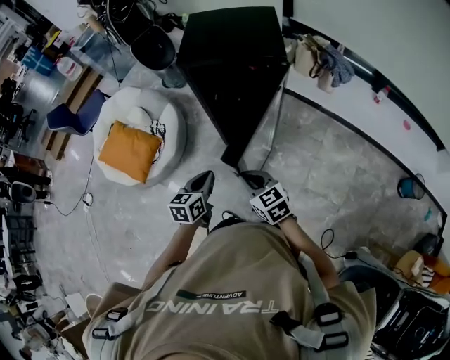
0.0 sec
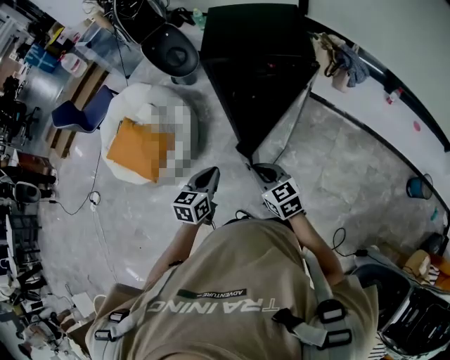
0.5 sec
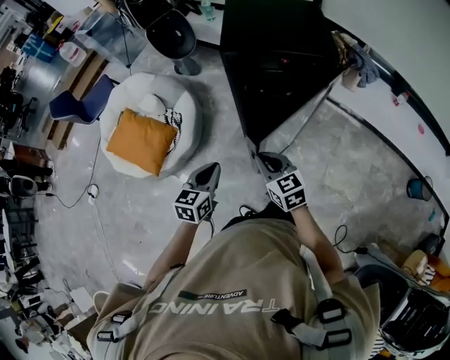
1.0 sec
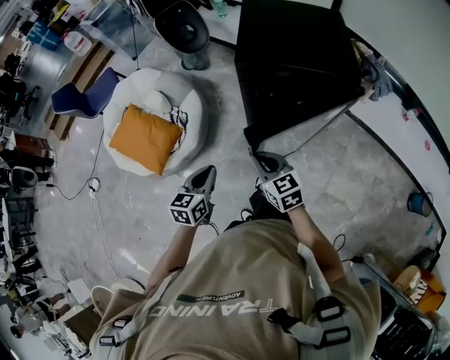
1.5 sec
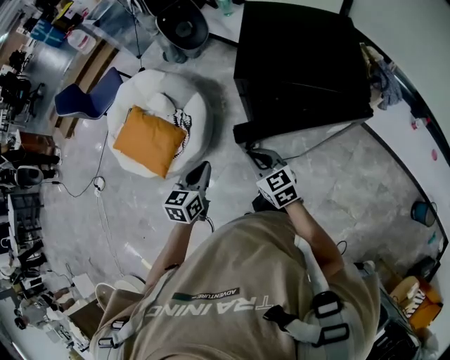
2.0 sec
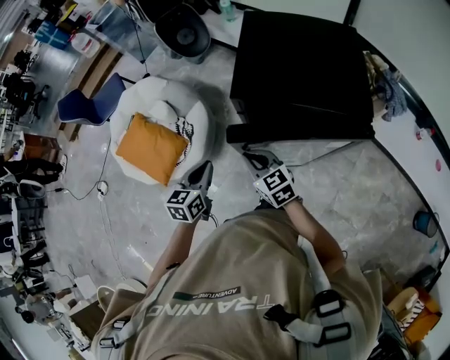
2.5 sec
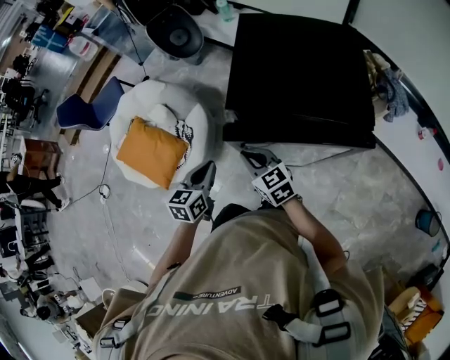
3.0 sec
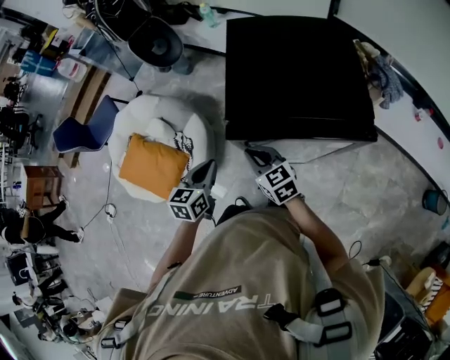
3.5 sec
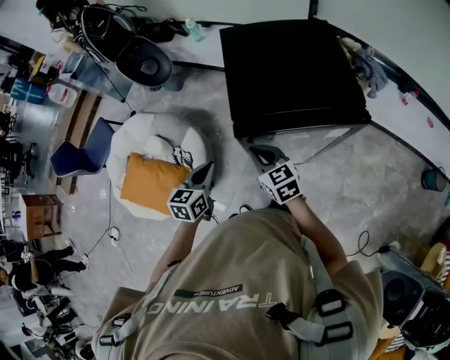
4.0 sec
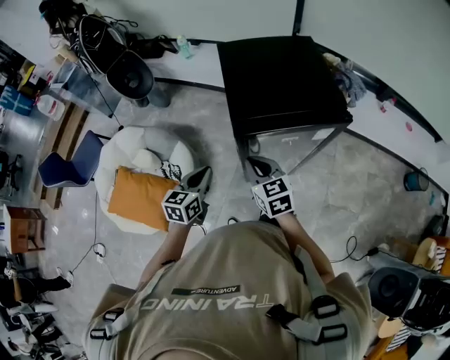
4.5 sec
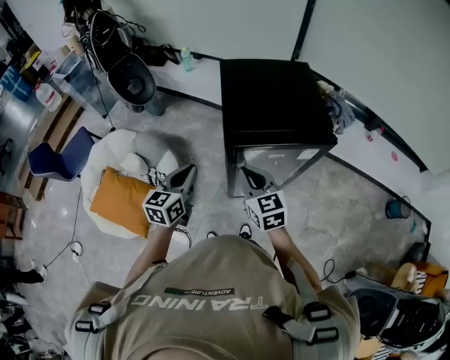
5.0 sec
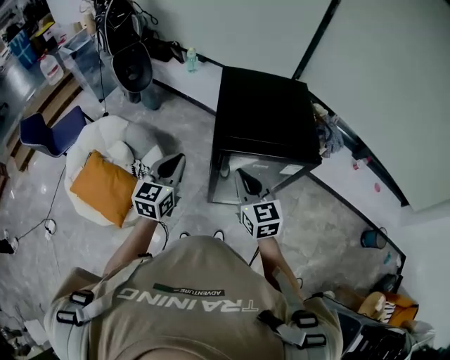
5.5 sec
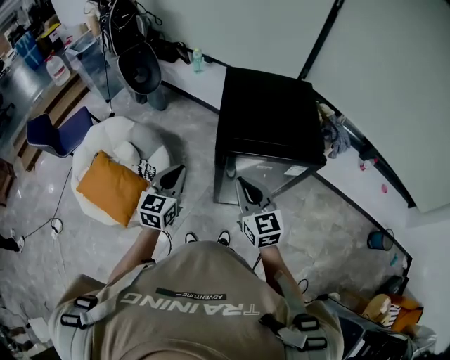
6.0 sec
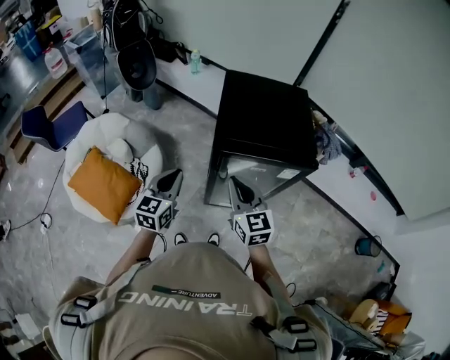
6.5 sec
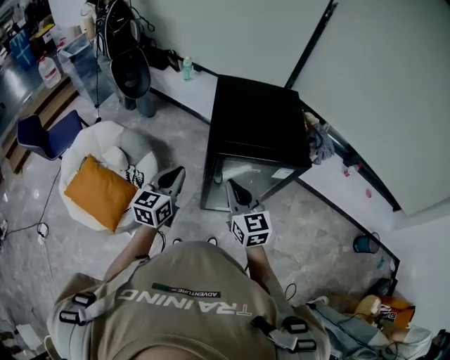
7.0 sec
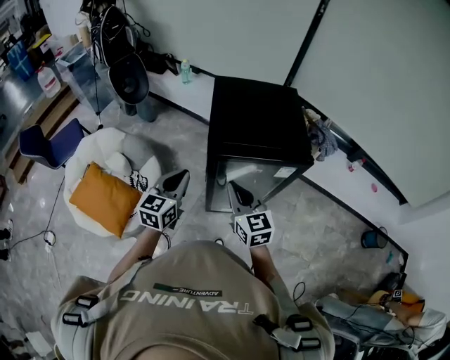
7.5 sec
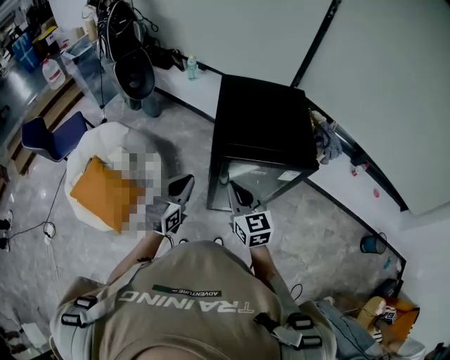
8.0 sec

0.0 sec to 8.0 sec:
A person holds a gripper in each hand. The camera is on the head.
0.0 sec to 2.0 sec: The grippers both shift forward and to the left by roughly 25 cm.
2.0 sec to 4.0 sec: The grippers both shift forward by some 10 cm.
4.0 sec to 6.0 sec: The left gripper shifts approximately 10 cm upward. Meanwhile the right gripper goes roughly 15 cm upward, backward and to the right.
6.0 sec to 8.0 sec: The grippers stay close to where they were, moving slightly.

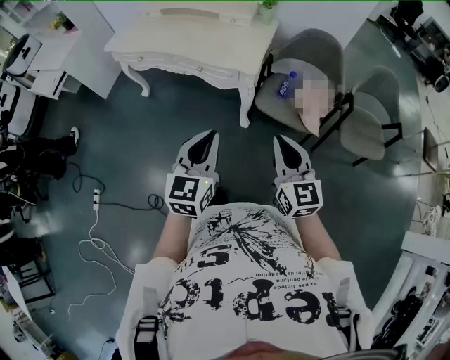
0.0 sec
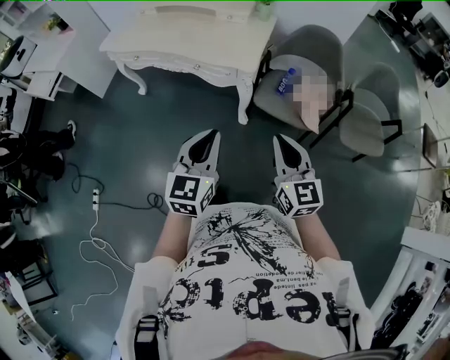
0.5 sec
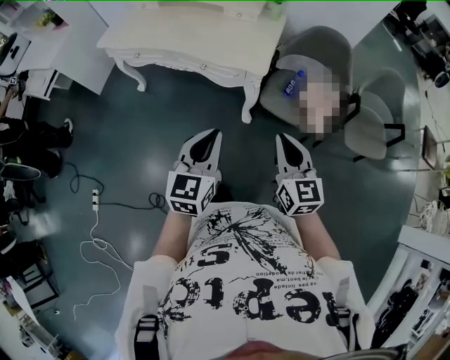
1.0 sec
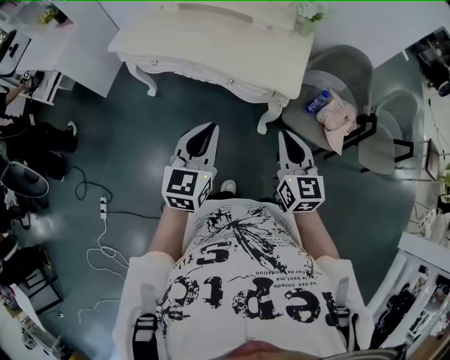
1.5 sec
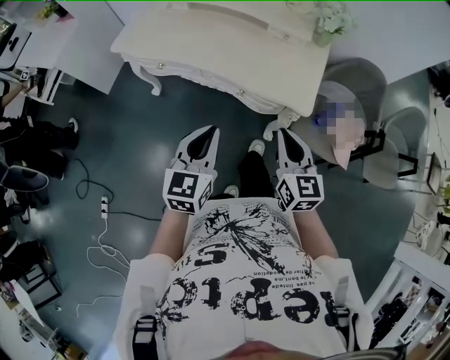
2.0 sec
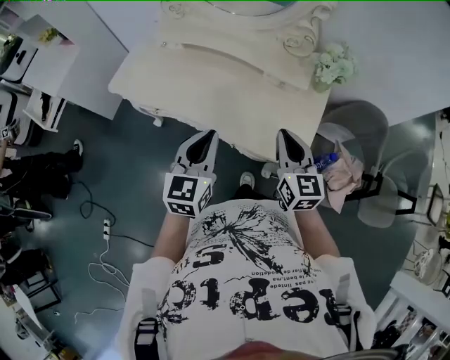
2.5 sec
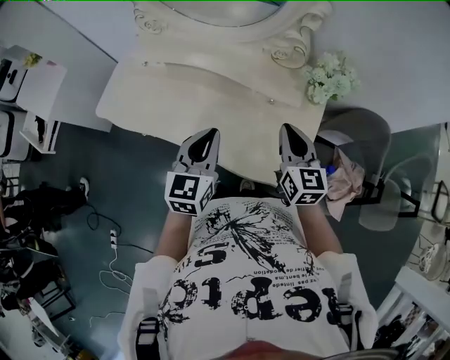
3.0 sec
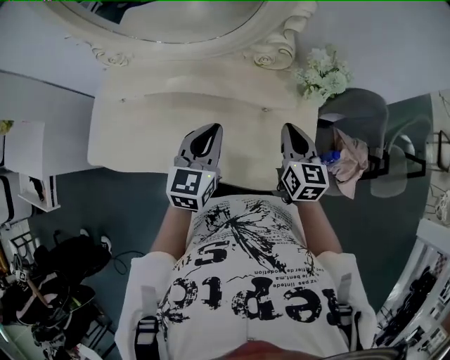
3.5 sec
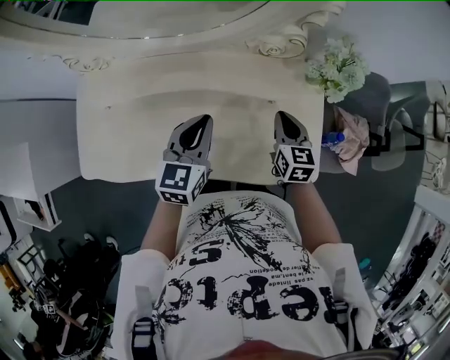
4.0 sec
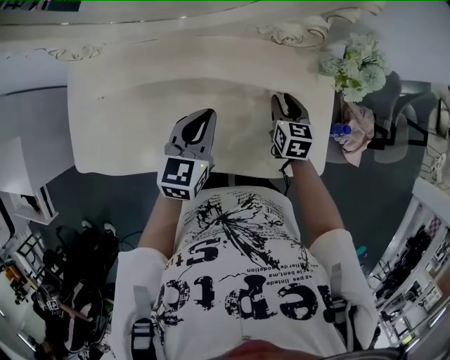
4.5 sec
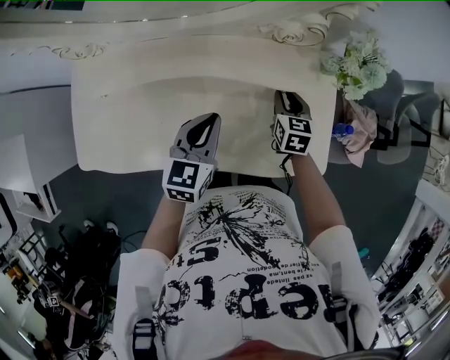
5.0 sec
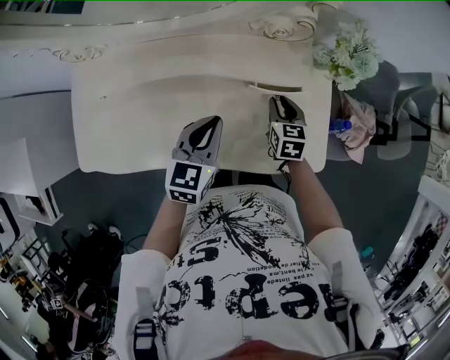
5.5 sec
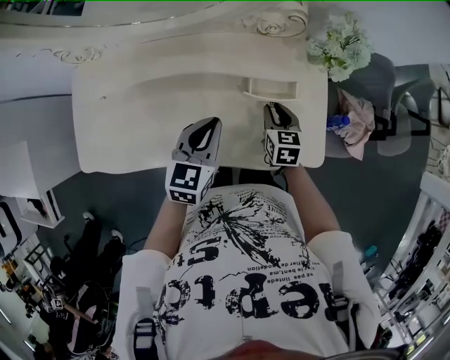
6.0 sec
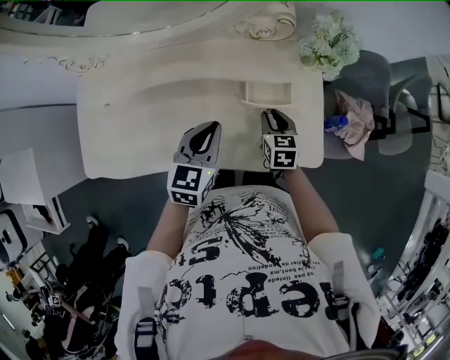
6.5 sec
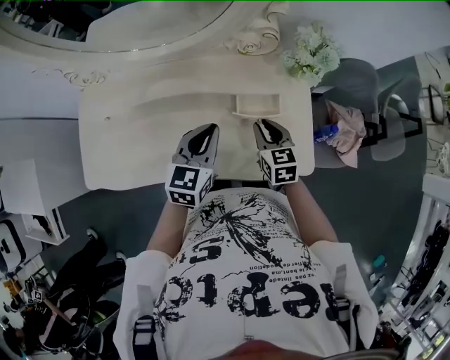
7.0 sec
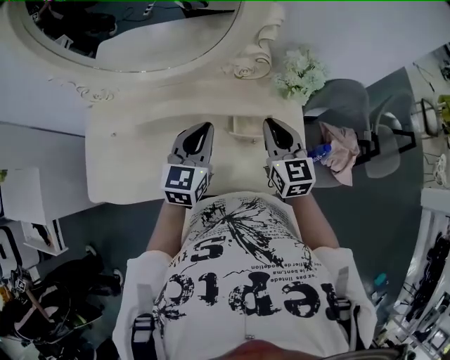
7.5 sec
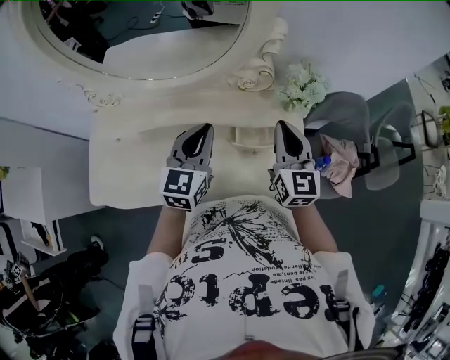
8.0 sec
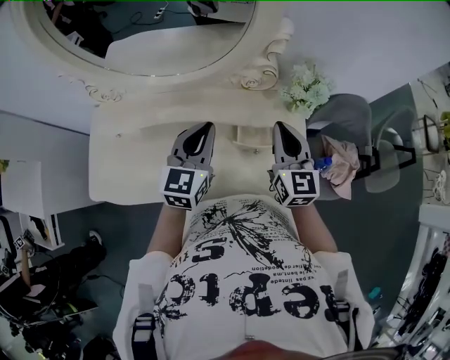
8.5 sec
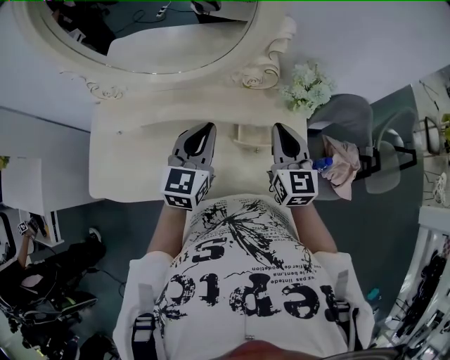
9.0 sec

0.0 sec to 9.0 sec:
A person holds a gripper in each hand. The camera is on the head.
0.0 sec to 2.0 sec: The two grippers go approximately 35 cm forward and to the left.
2.0 sec to 4.5 sec: The pair of grippers is taken approximately 50 cm. The right gripper rotates about 40 degrees, and opens up. The left gripper rotates approximately 30 degrees.
4.5 sec to 7.0 sec: The right gripper goes about 10 cm backward and upward. Meanwhile the left gripper moves to the right, roughly 5 cm.
7.0 sec to 9.0 sec: The right gripper goes roughly 15 cm upward, and swivels roughly 30 degrees. The left gripper shifts about 10 cm upward.

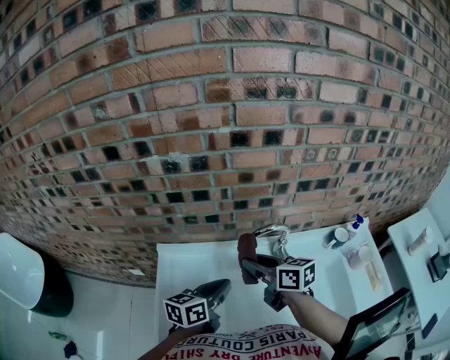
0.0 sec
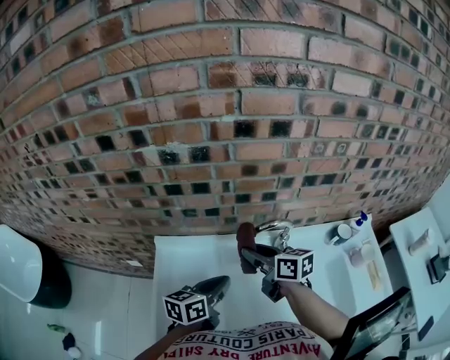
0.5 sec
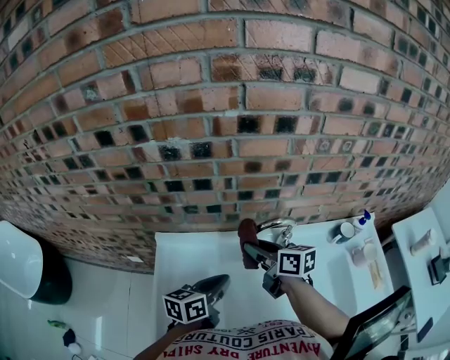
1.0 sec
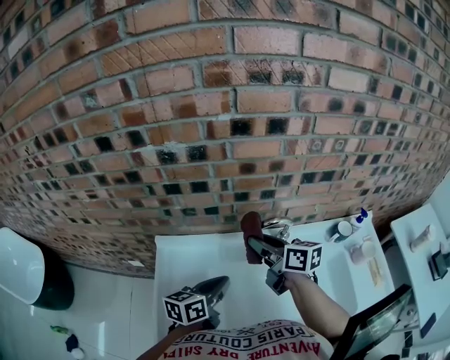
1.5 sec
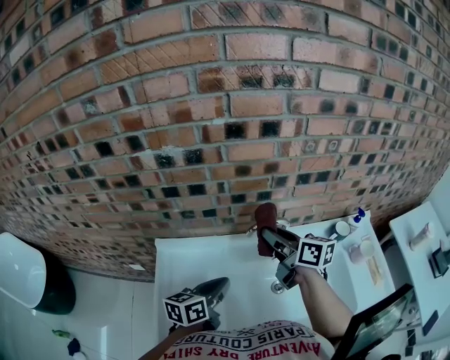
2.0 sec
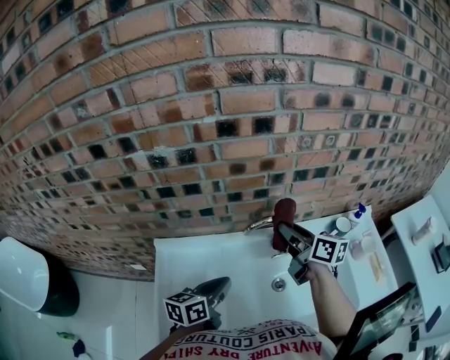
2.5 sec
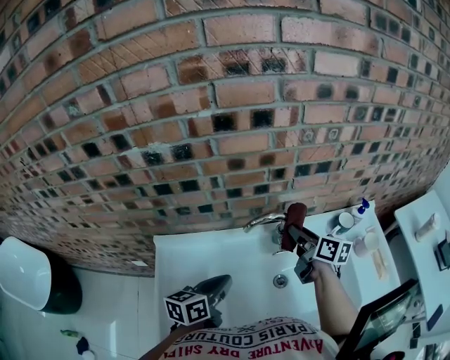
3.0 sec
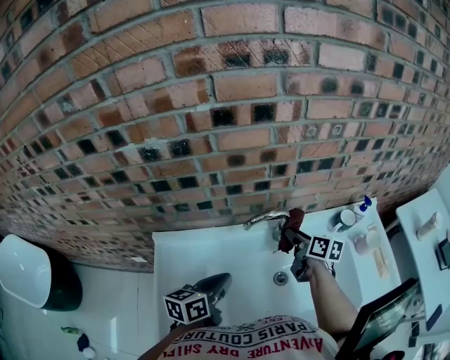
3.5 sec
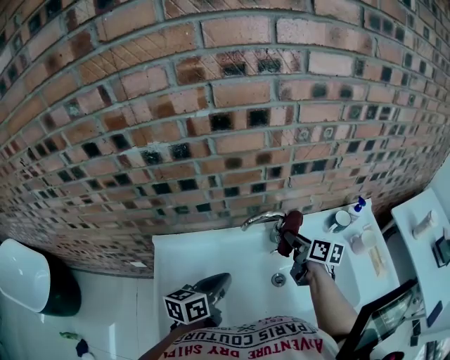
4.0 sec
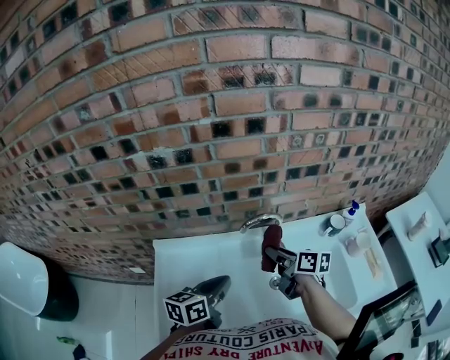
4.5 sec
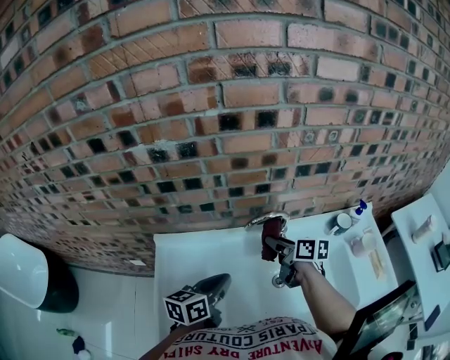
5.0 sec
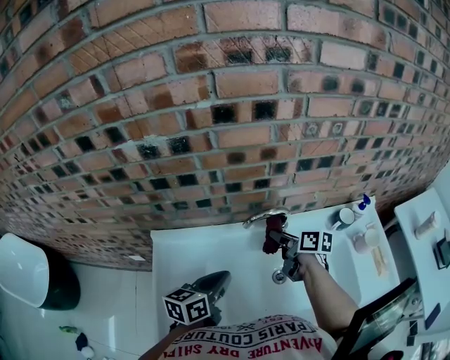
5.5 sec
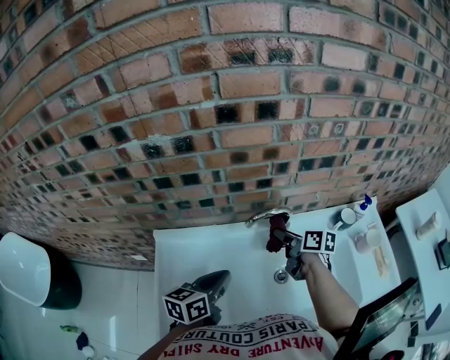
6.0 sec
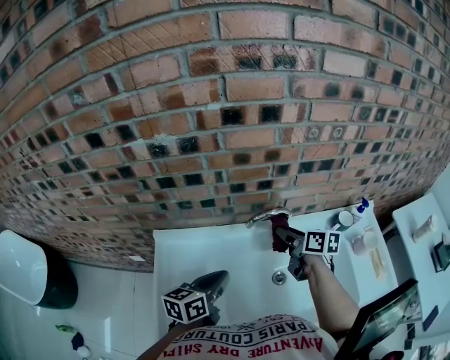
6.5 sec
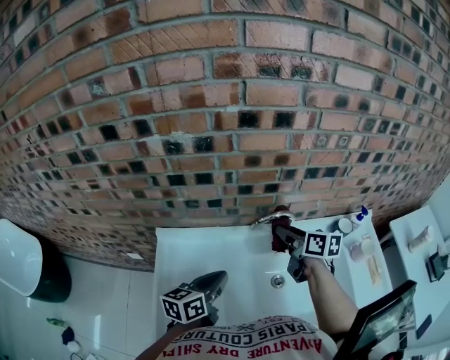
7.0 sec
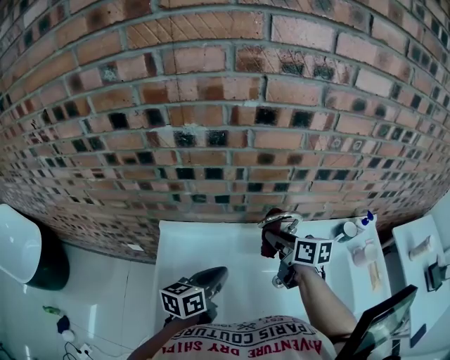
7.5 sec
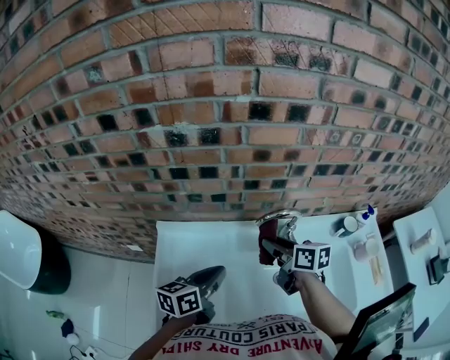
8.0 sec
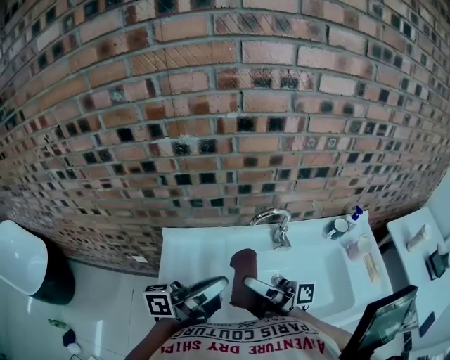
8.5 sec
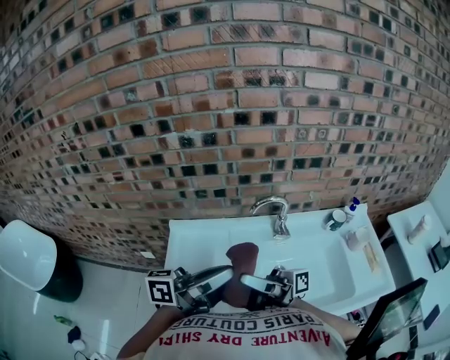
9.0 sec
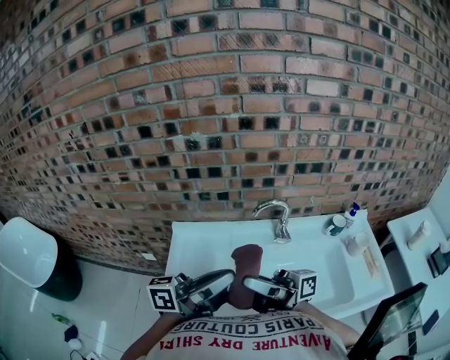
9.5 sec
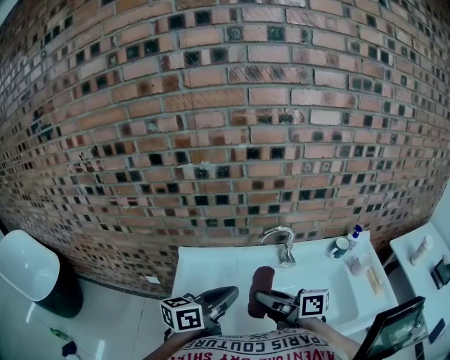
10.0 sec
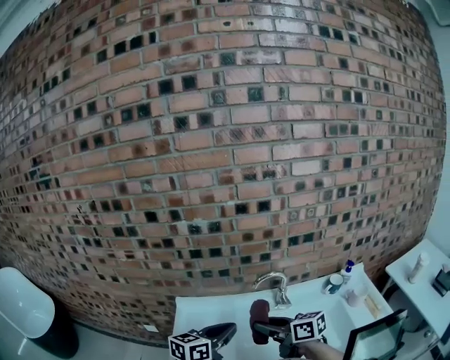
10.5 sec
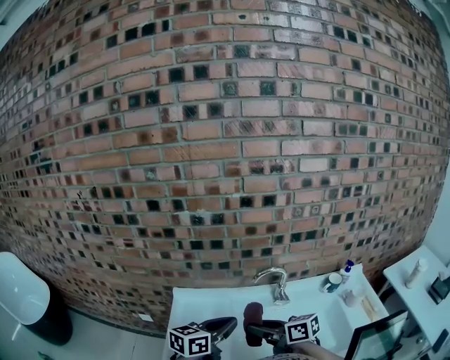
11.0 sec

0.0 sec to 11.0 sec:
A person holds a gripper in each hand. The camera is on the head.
0.0 sec to 2.0 sec: The right gripper moves to the right and forward, some 10 cm.
2.0 sec to 3.5 sec: The right gripper shifts some 15 cm downward and to the right, and changes its angle by some 20 degrees.
3.5 sec to 5.5 sec: The right gripper heads to the left, covering about 5 cm.
5.5 sec to 7.5 sec: The right gripper travels upward and to the left by roughly 10 cm.
7.5 sec to 9.0 sec: The right gripper moves roughly 30 cm, and tilts its fingers approximately 60 degrees upward. The left gripper travels upward by about 15 cm, and points its fingers some 30 degrees further upward.
9.0 sec to 11.0 sec: The grippers both shift downward by approximately 5 cm. The left gripper rotates about 40 degrees. The right gripper angles its fingers downward, by about 50 degrees.
